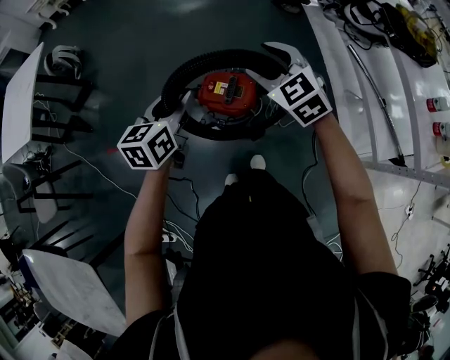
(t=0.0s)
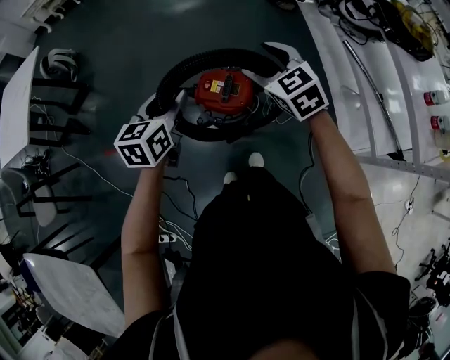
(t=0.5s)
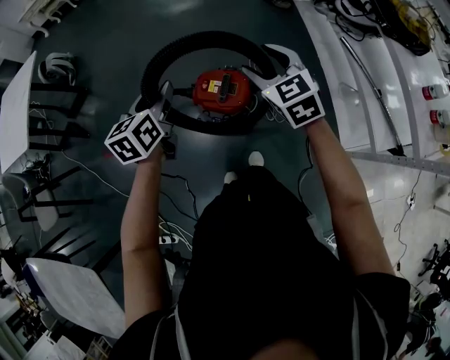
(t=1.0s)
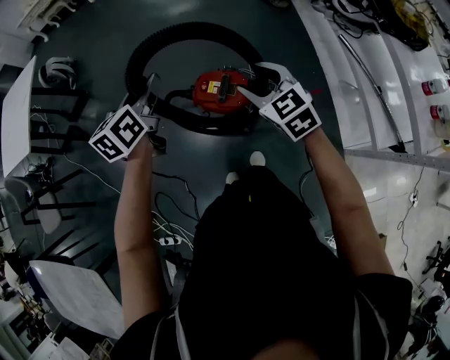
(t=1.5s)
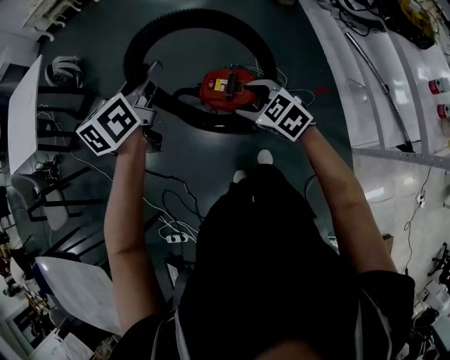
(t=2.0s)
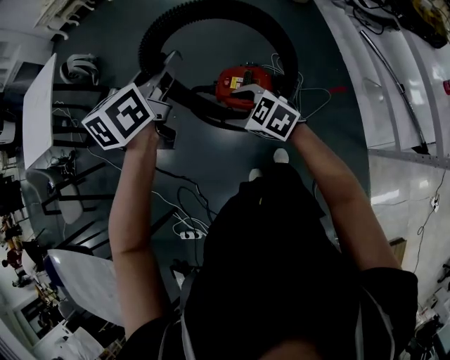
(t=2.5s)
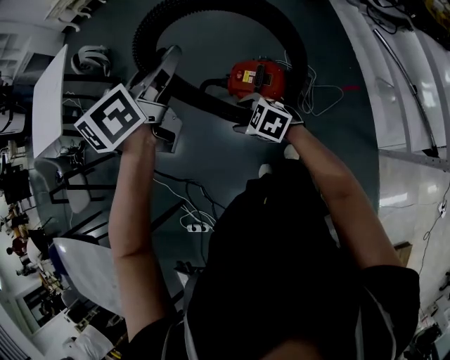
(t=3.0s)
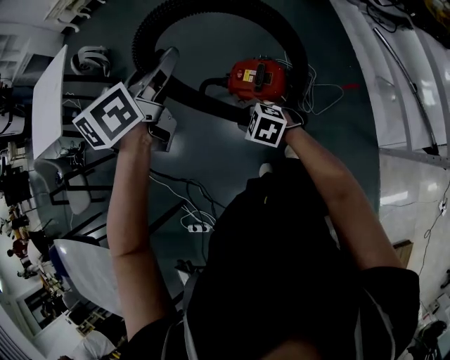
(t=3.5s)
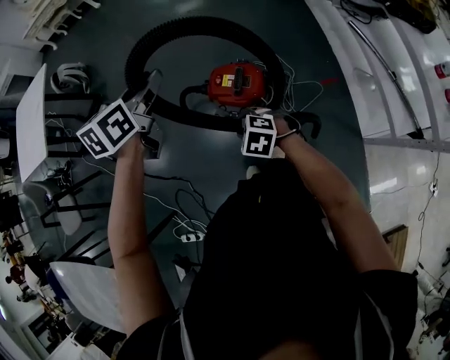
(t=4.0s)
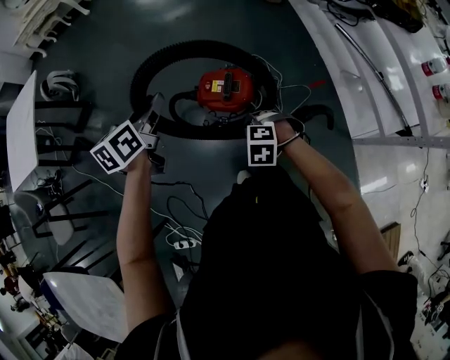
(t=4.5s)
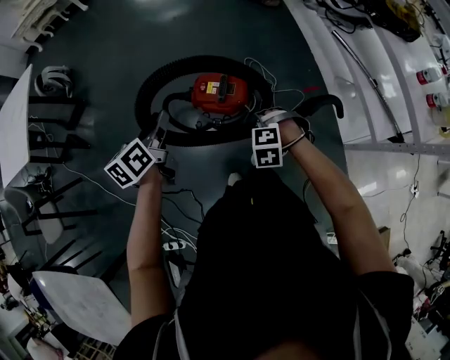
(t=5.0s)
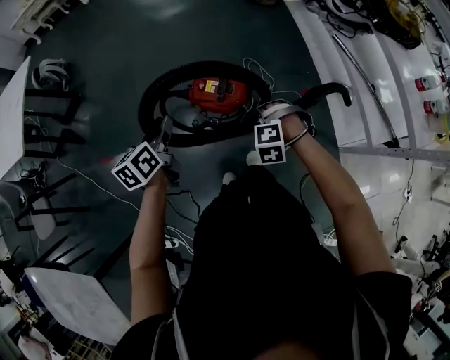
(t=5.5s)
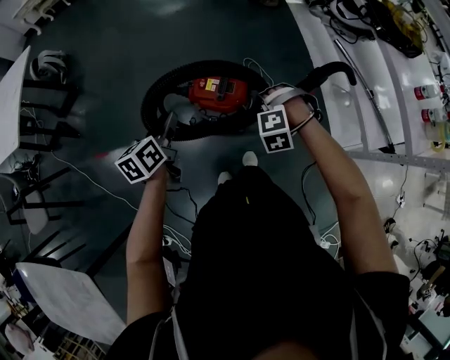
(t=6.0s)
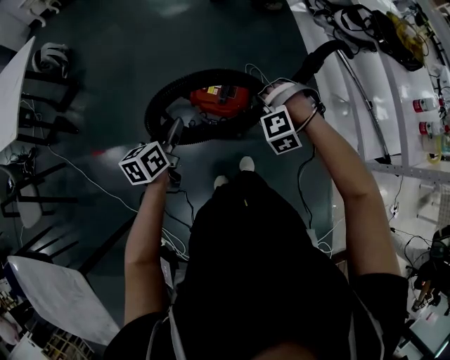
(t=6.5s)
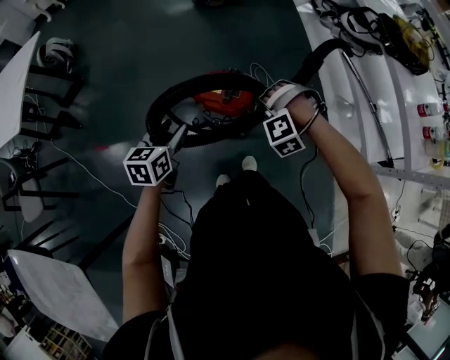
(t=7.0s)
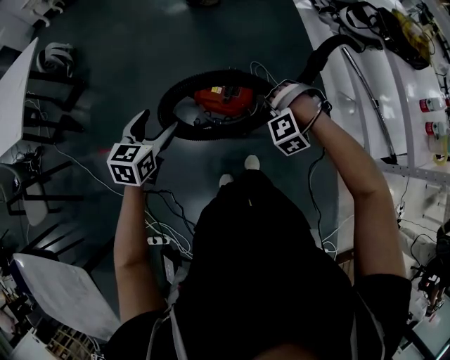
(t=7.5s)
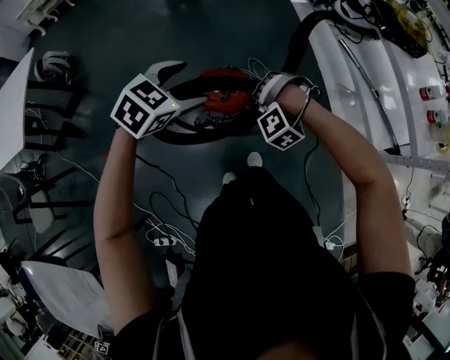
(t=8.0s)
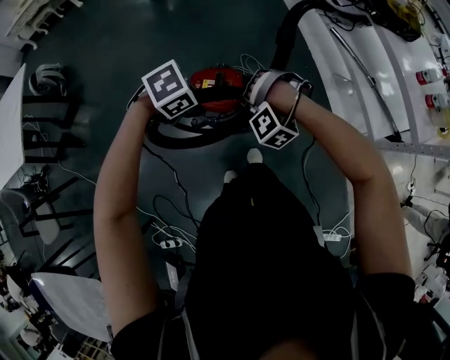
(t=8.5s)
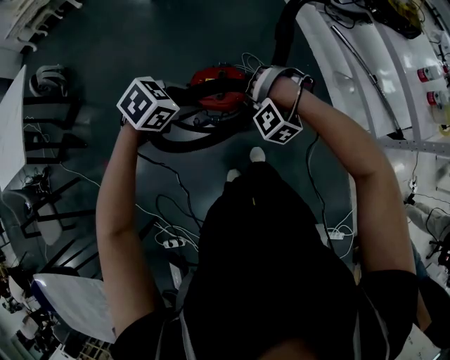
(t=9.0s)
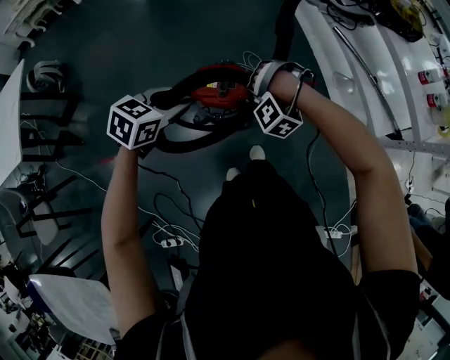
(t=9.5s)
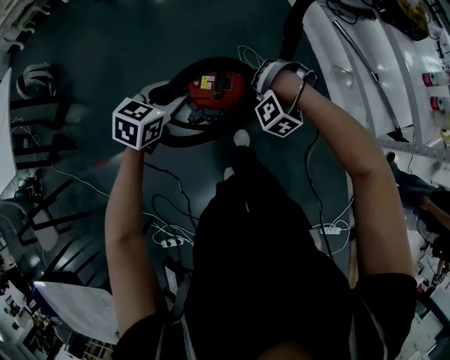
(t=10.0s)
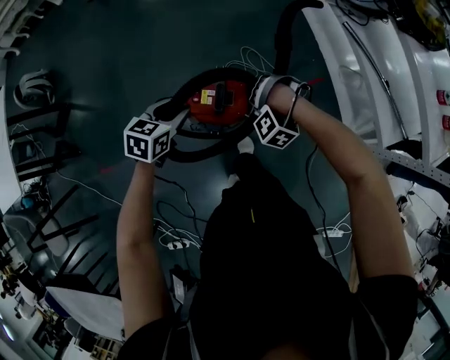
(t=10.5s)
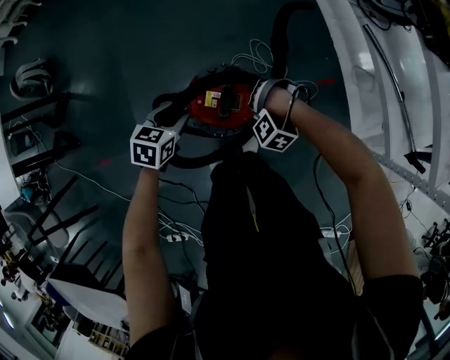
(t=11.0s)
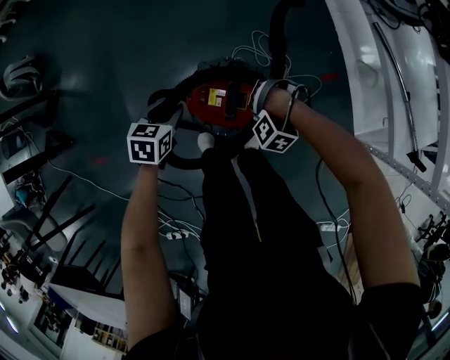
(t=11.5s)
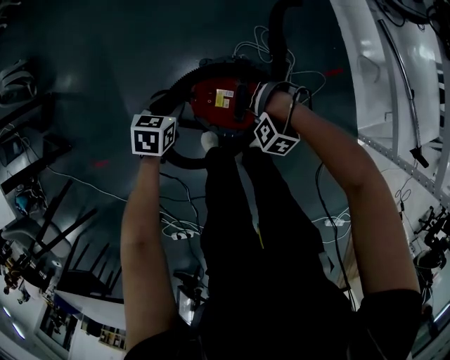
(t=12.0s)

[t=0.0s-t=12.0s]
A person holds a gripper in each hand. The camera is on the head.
t=0.0s to t=2.0s: The right gripper heads downward and backward, covering about 15 cm, and rotates about 20 degrees; the left gripper goes some 10 cm upward.
t=2.0s to t=4.0s: The right gripper shifts about 15 cm downward, to the left and backward, swivels roughly 30 degrees, and closes up.
t=4.0s to t=6.0s: The right gripper changes place by roughly 15 cm, and changes its angle by roughly 50 degrees. The left gripper travels downward by some 15 cm.
t=6.0s to t=8.0s: The left gripper is displaced to the right, upward and forward by some 15 cm, twists some 60 degrees clockwise, seen from behind, and opens up, while the right gripper rotates some 30 degrees.
t=8.0s to t=10.0s: The left gripper moves downward, roughly 10 cm, and closes its fingers. The right gripper moves downward, about 5 cm.
t=10.0s to t=12.0s: Both grippers move downward, some 25 cm. The left gripper swivels some 30 degrees; the right gripper changes its angle by roughly 20 degrees.

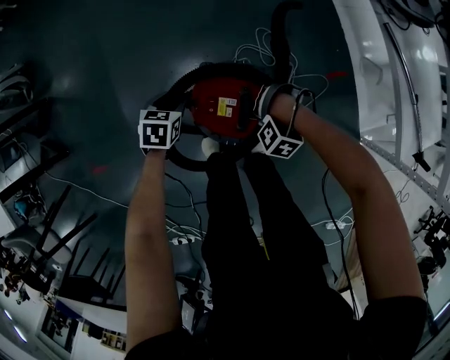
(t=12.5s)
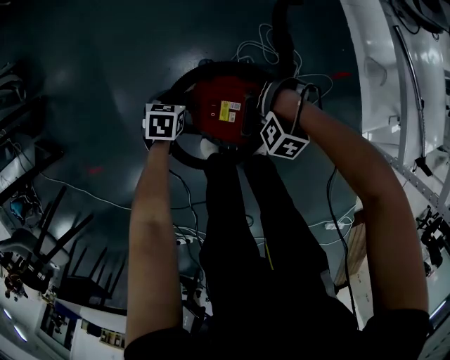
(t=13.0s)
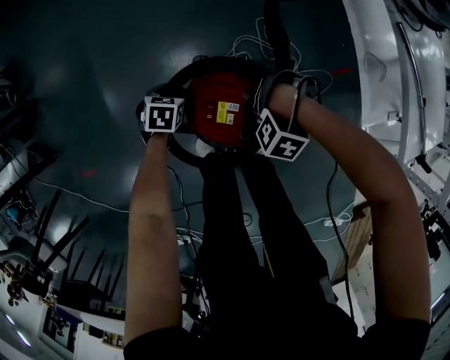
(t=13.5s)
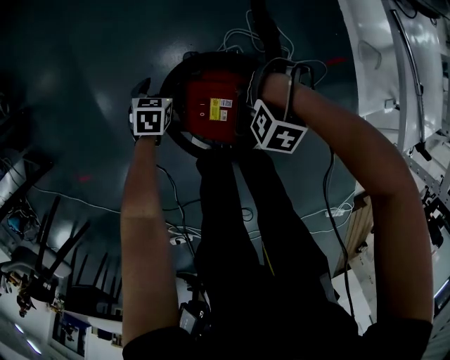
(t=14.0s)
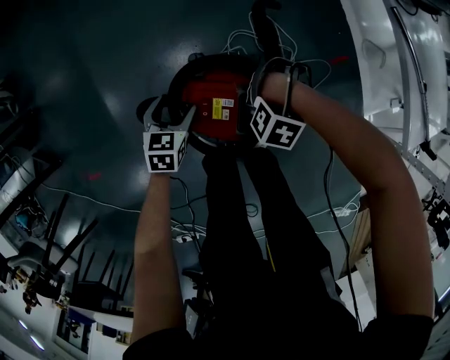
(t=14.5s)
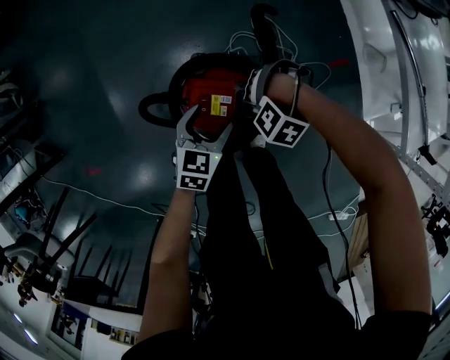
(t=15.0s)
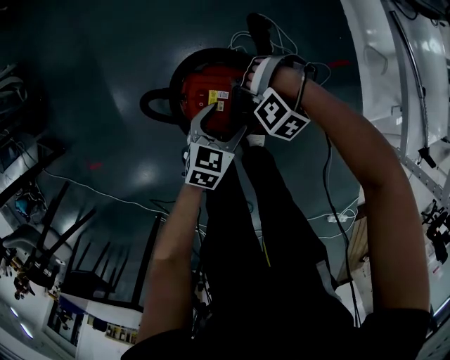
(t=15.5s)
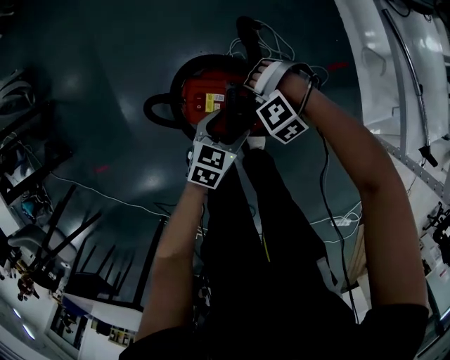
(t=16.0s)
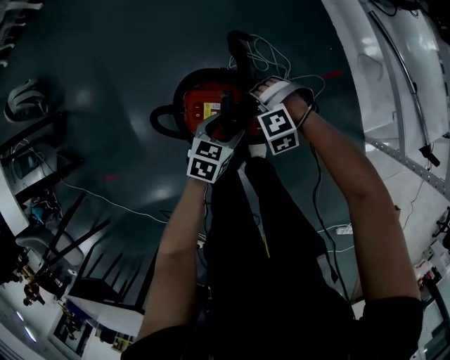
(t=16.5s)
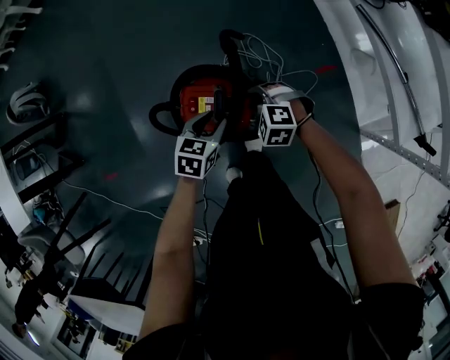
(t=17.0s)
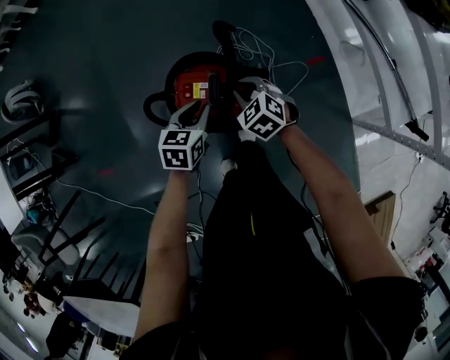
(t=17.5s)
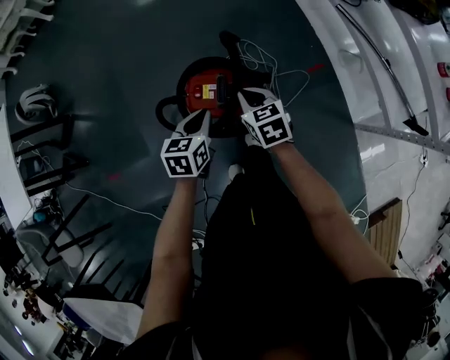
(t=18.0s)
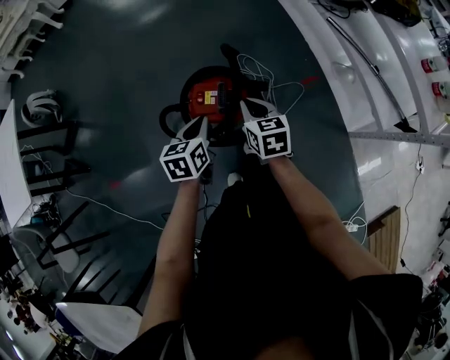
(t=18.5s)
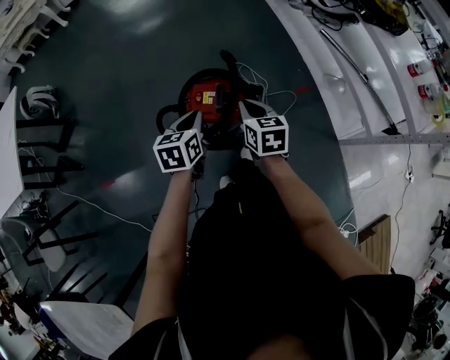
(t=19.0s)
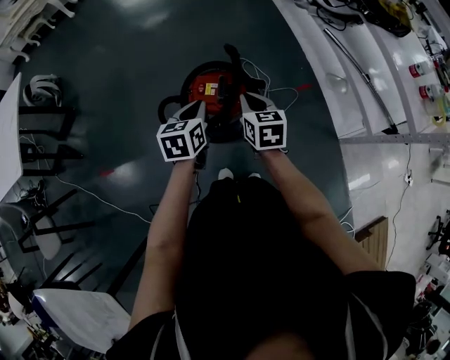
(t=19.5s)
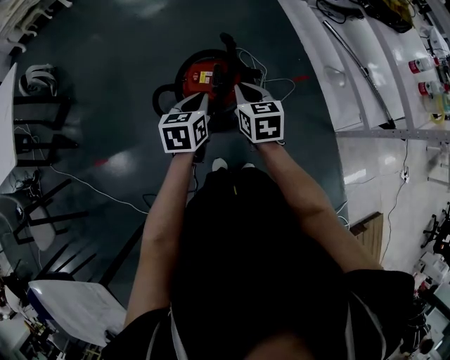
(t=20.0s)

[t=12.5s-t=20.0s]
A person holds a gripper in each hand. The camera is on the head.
t=12.5s to t=14.5s: The left gripper heads downward, covering about 5 cm, and opens its fingers.
t=14.5s to t=16.5s: The right gripper heads upward, covering approximately 10 cm, and rotates roughly 60 degrees. The left gripper shifts by approximately 25 cm.
t=16.5s to t=18.0s: The left gripper is displaced upward, backward and to the left by about 20 cm, turns by roughly 20 degrees, and closes its fingers. The right gripper moves upward and backward, about 15 cm, rolls clockwise, seen from behind, by roughly 80 degrees, and closes up.
t=18.0s to t=20.0s: Both grippers move backward and upward, some 15 cm.

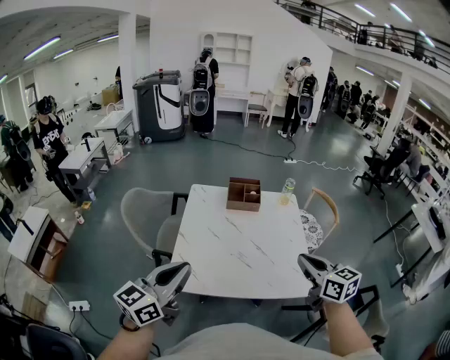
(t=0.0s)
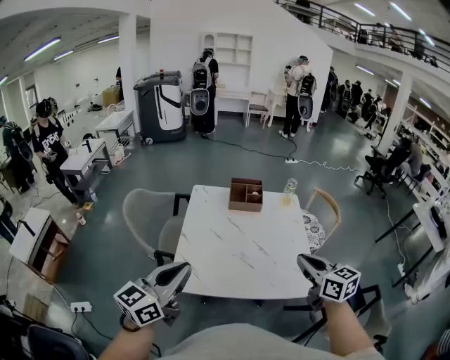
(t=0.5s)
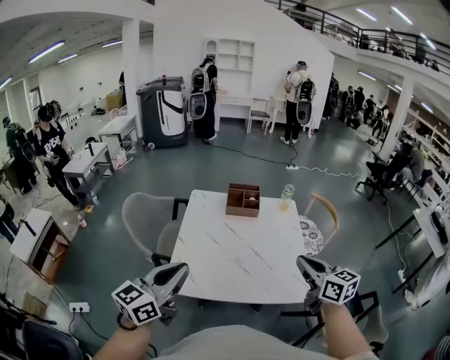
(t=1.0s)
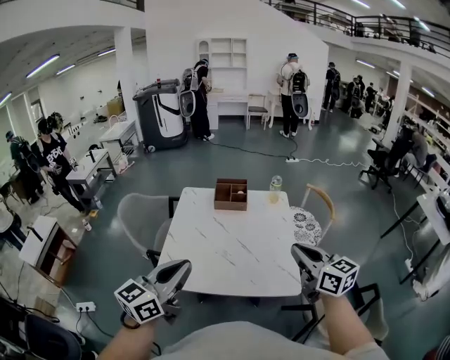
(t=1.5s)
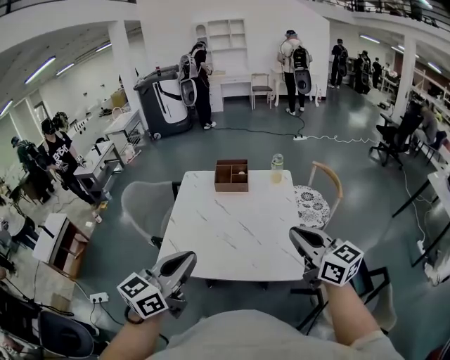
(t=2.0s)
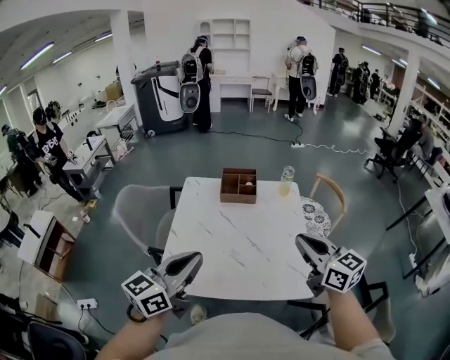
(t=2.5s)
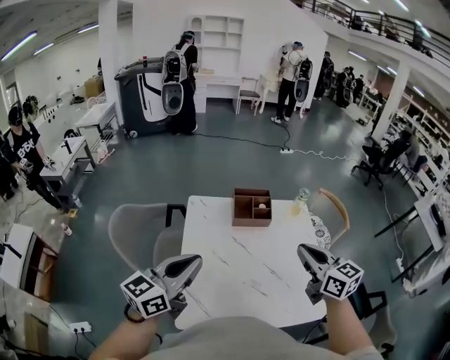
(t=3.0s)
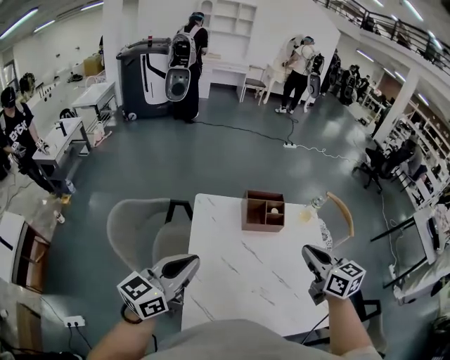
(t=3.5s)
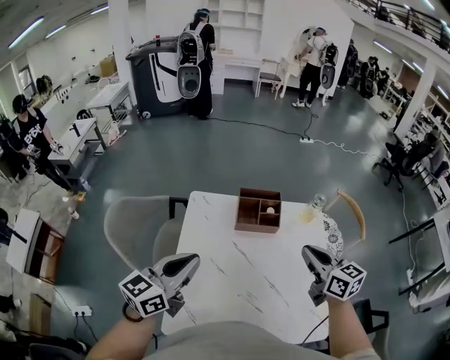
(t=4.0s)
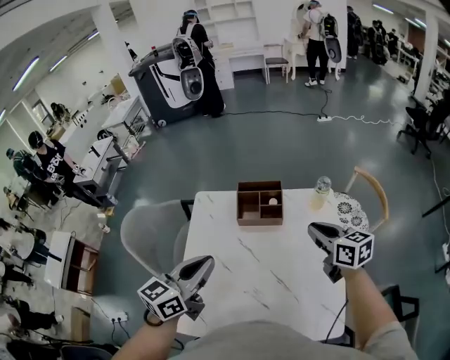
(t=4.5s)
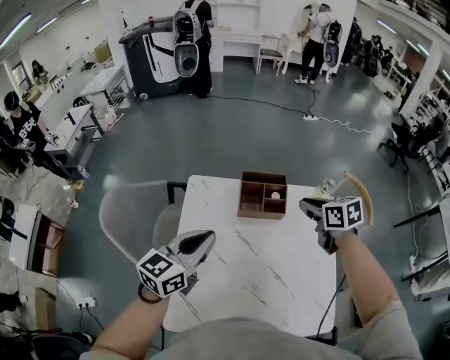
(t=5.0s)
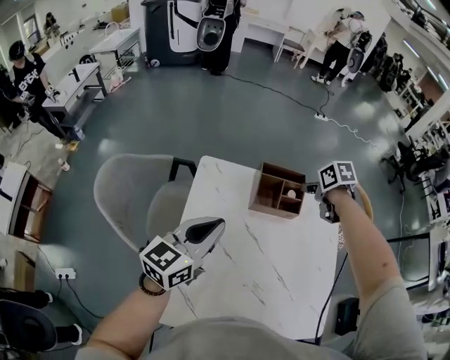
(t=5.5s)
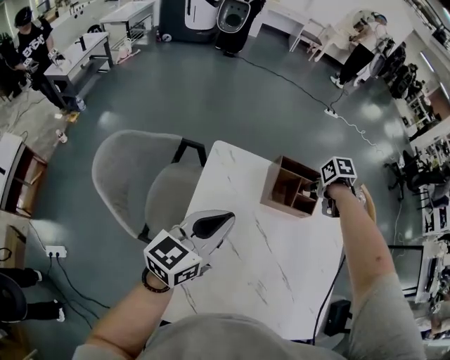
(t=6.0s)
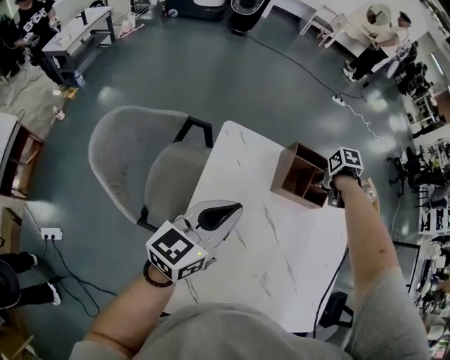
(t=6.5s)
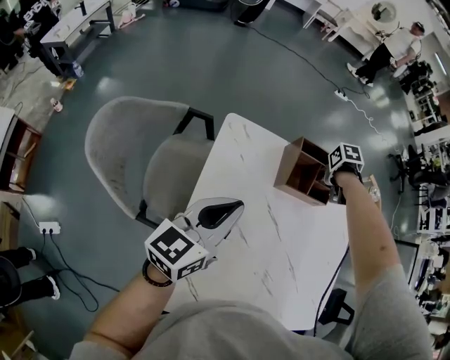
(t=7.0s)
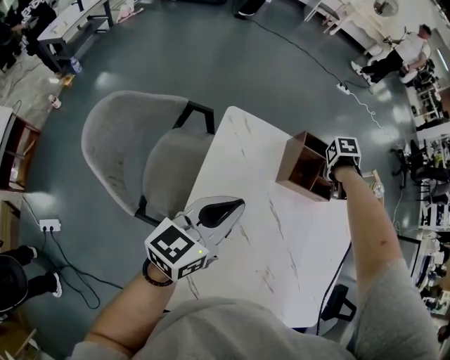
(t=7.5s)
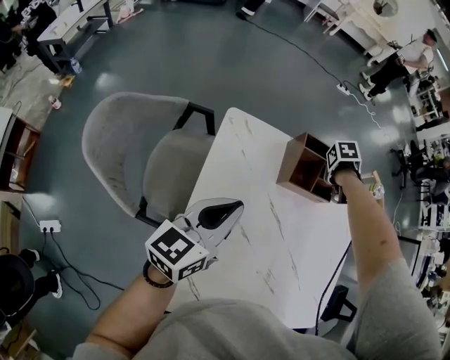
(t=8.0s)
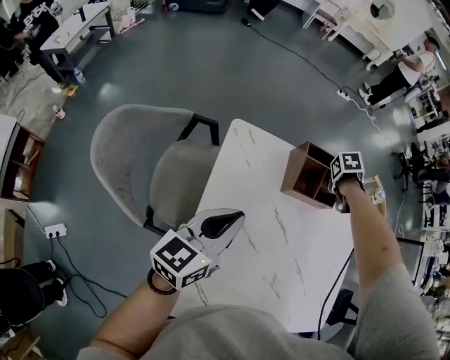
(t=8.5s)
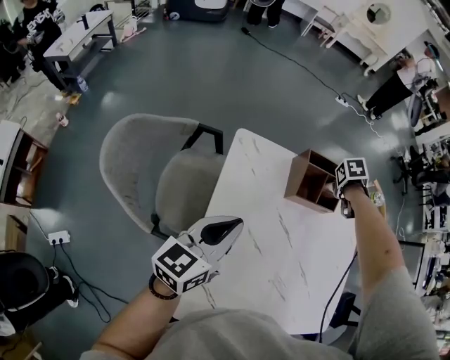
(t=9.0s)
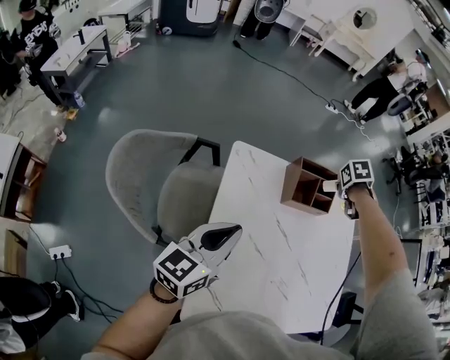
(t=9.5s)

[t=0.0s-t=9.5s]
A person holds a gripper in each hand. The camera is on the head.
t=0.0s to t=2.0s: The left gripper is displaced to the right by some 15 cm. Meanwhile the right gripper heads to the right, covering roughly 10 cm.
t=2.0s to t=4.0s: The grippers both shift forward and to the left by about 35 cm.
t=4.0s to t=5.5s: The left gripper moves forward and downward, some 10 cm, and moves roughly 10 cm to the right and comes back, while the right gripper heads forward and downward, covering roughly 25 cm, angles its fingers downward, by roughly 50 degrees, and opens up.
t=5.5s to t=7.5s: The right gripper shifts about 15 cm downward, changes its angle by some 40 degrees, and opens, then closes again. Meanwhile the left gripper travels downward by about 10 cm.
t=7.5s to t=9.5s: The left gripper moves roughly 5 cm; the right gripper shifts roughly 10 cm upward.
